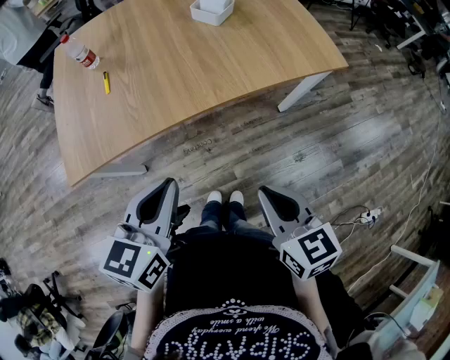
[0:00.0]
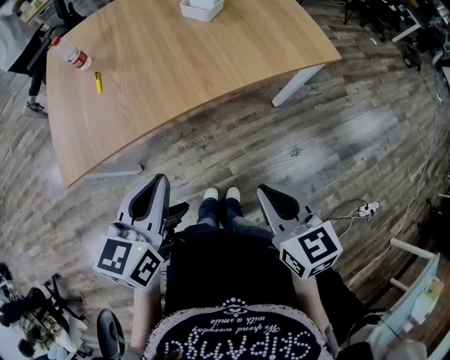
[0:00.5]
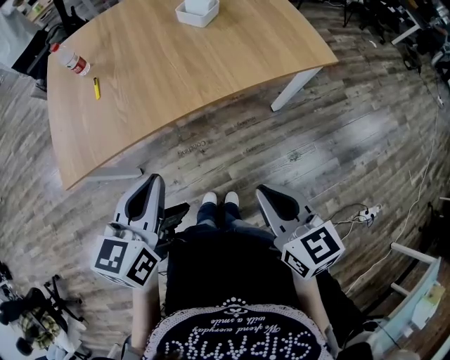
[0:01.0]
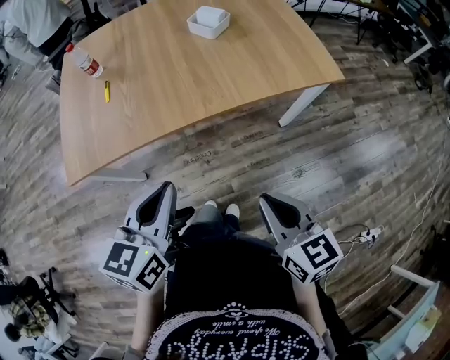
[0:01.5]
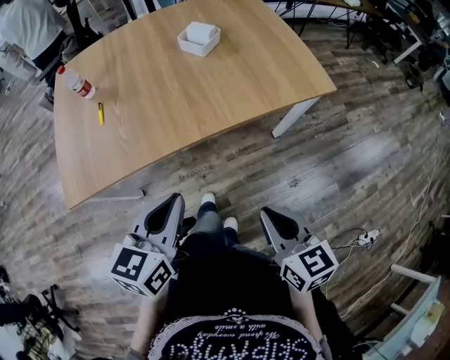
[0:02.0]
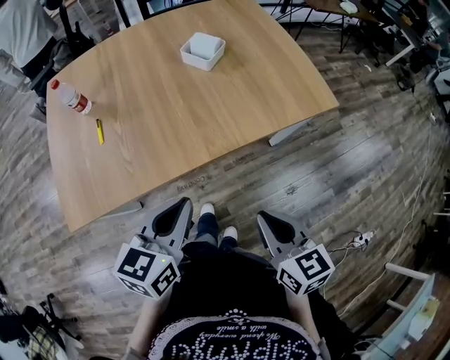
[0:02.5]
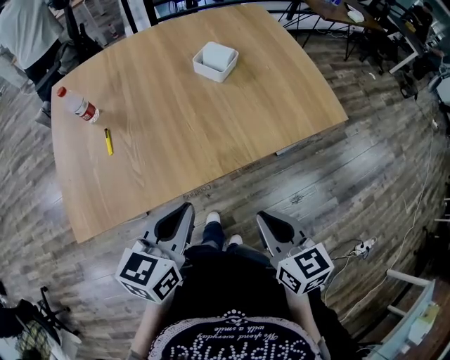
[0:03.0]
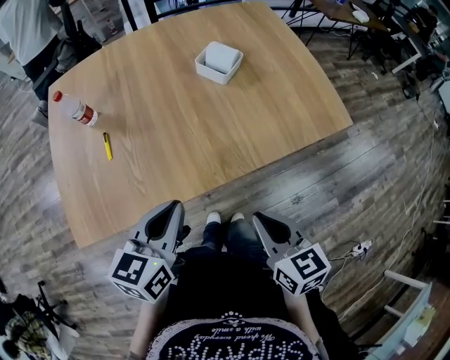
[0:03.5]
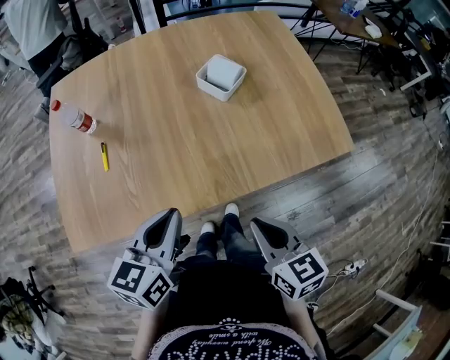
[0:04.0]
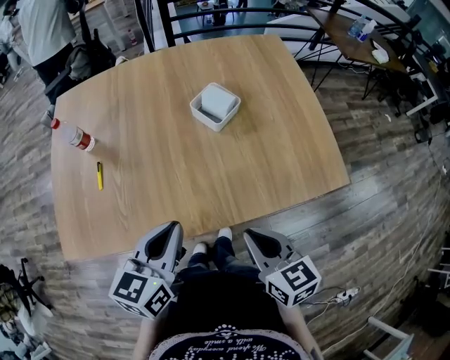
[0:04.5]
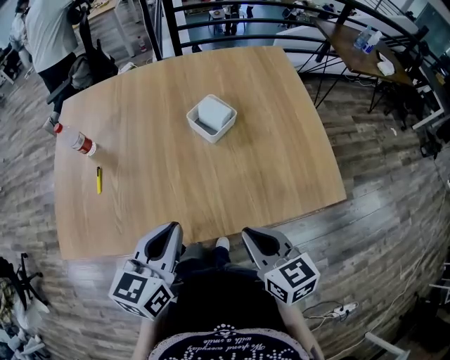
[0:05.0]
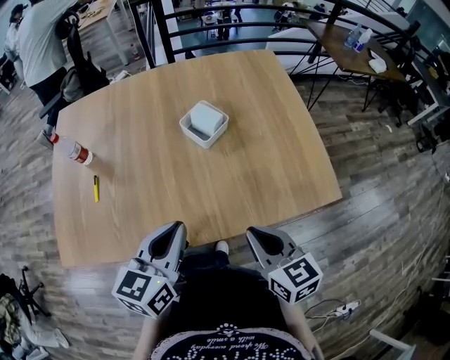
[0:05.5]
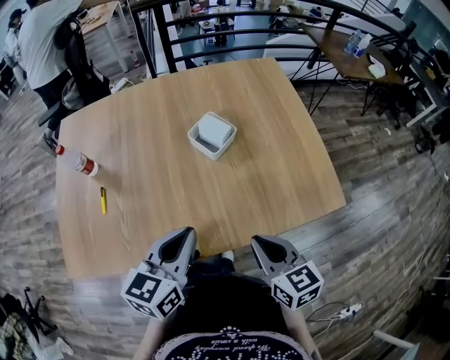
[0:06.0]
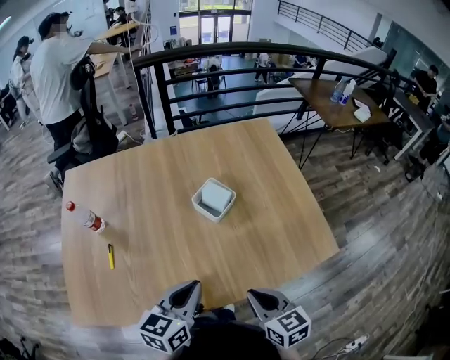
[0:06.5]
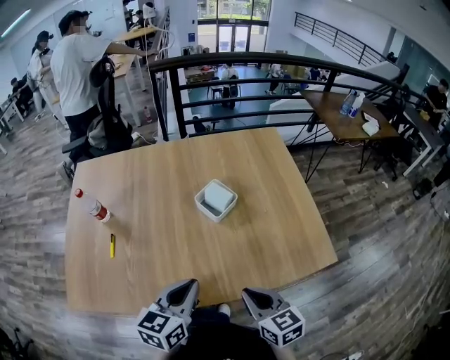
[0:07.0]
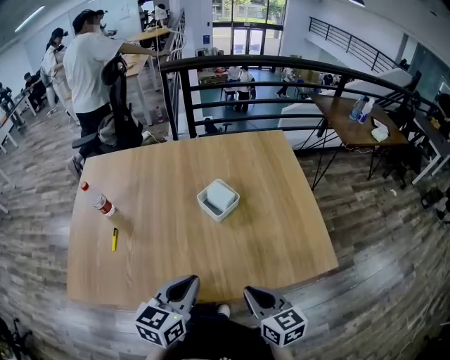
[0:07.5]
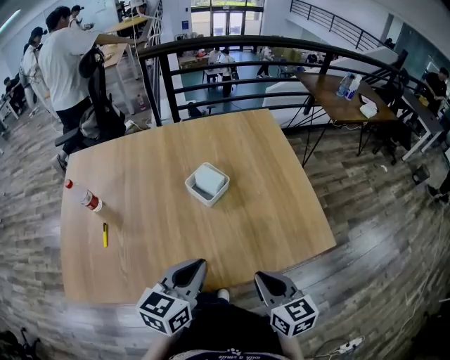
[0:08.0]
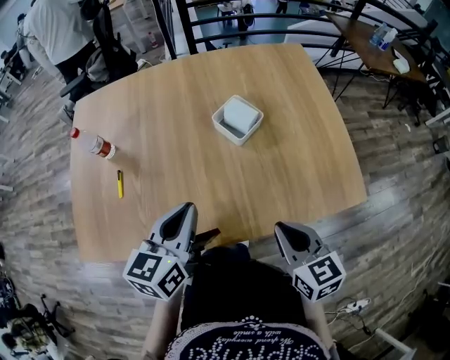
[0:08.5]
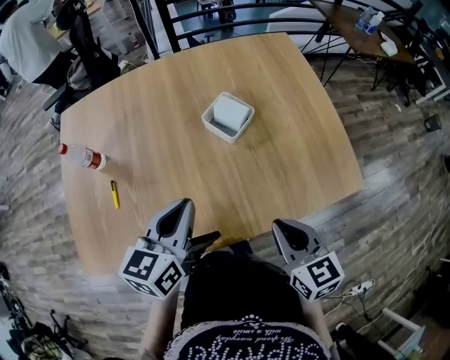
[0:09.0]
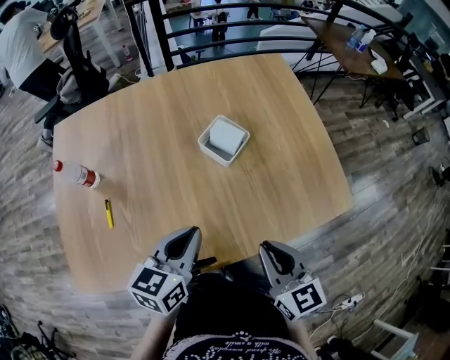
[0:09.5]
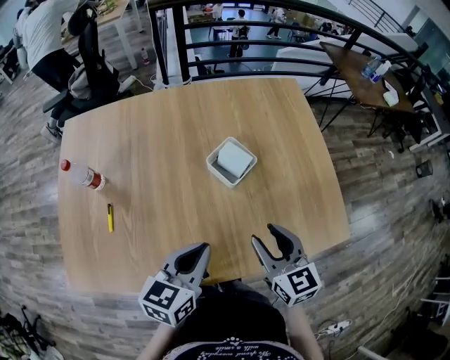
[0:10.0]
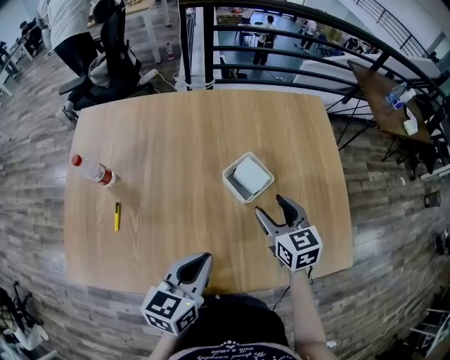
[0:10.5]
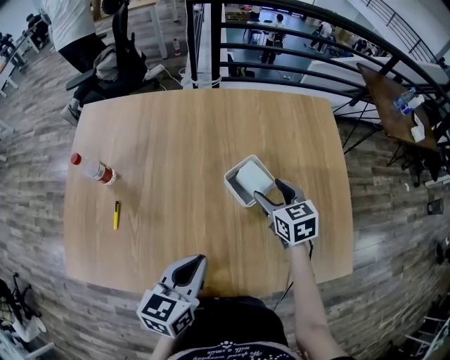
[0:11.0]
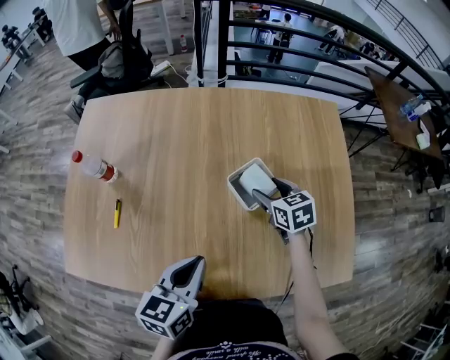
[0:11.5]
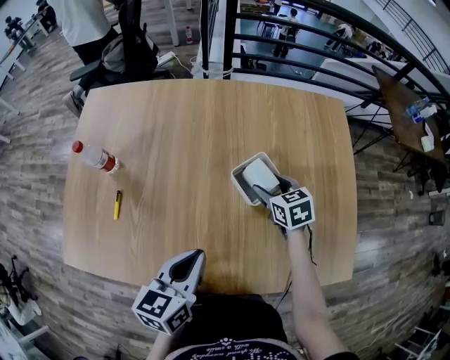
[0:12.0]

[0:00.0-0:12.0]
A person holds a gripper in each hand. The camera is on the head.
0:00.0 to 0:02.0: Both grippers travel together to the right, some 5 cm.
0:02.0 to 0:04.0: The two grippers go about 15 cm forward.
0:04.0 to 0:06.0: The right gripper is displaced forward and to the right by some 10 cm, while the left gripper goes some 10 cm to the right and forward.
0:06.0 to 0:08.0: The grippers make only small movements.
0:08.0 to 0:10.0: The right gripper travels forward and to the left by roughly 10 cm, and opens up. The left gripper travels to the left by some 5 cm.
0:10.0 to 0:12.0: The right gripper shifts some 25 cm forward and downward, rotates approximately 30 degrees, and opens its fingers.

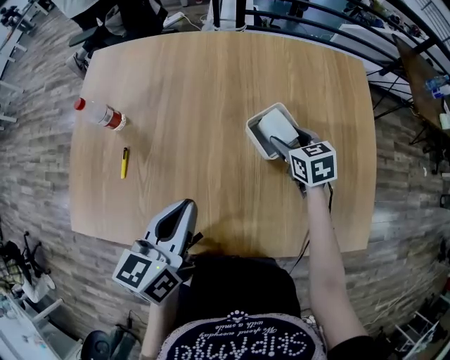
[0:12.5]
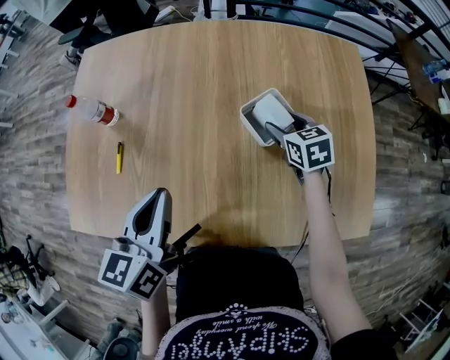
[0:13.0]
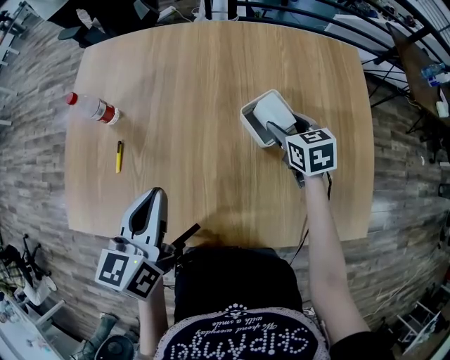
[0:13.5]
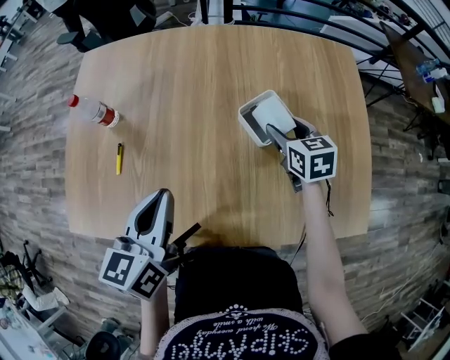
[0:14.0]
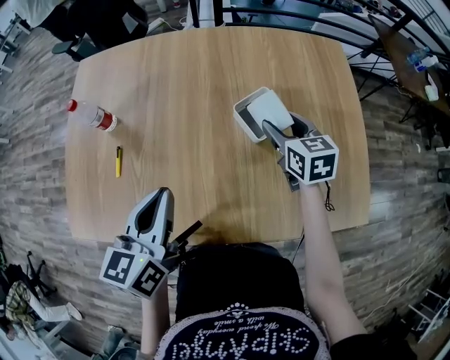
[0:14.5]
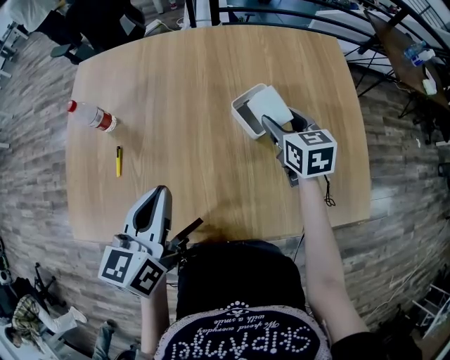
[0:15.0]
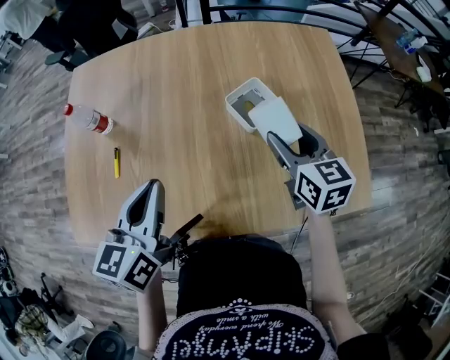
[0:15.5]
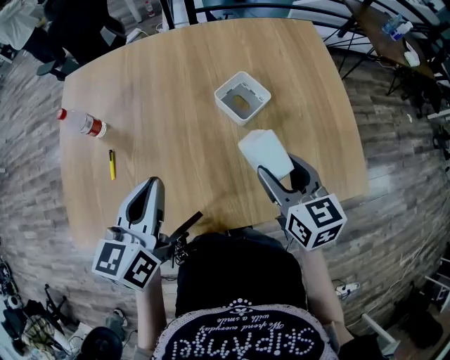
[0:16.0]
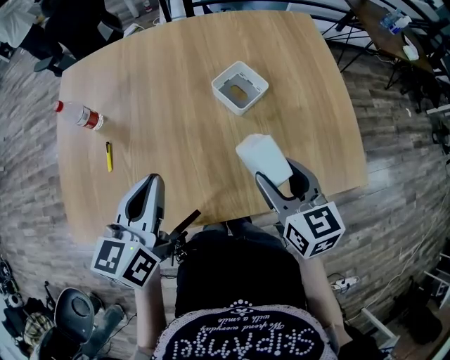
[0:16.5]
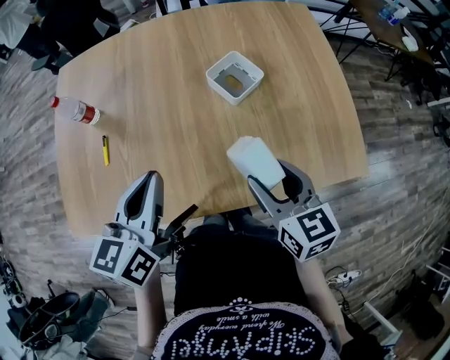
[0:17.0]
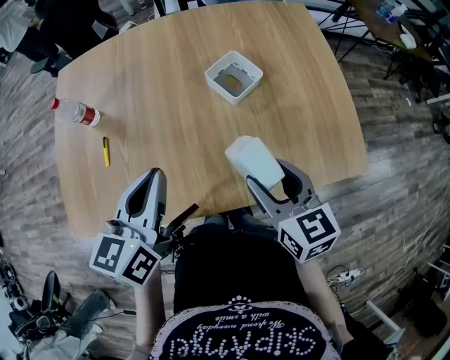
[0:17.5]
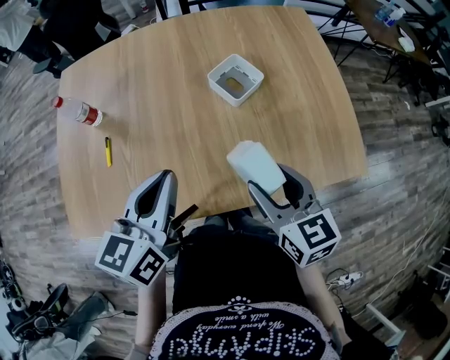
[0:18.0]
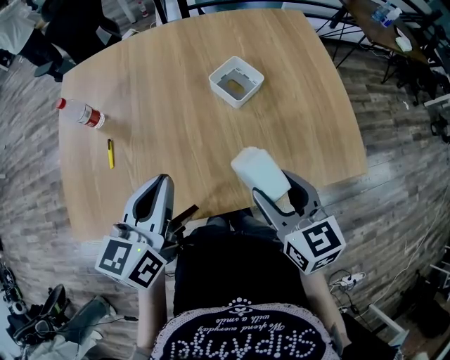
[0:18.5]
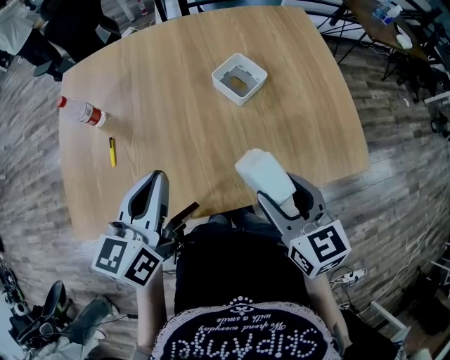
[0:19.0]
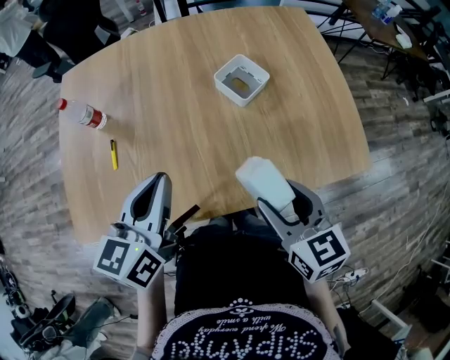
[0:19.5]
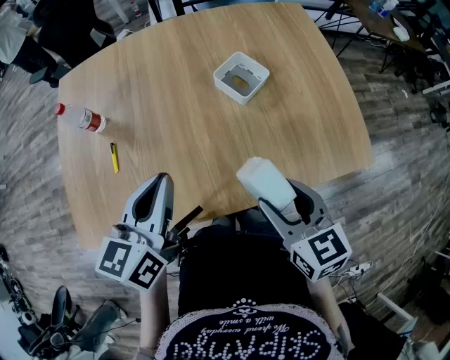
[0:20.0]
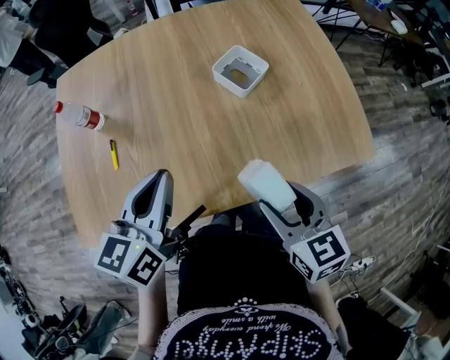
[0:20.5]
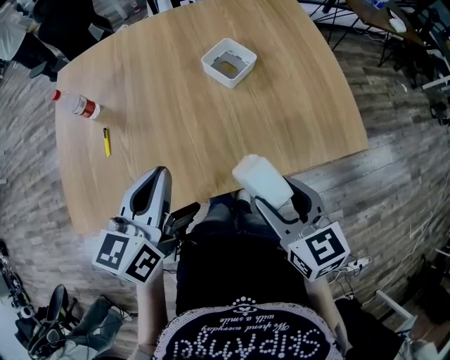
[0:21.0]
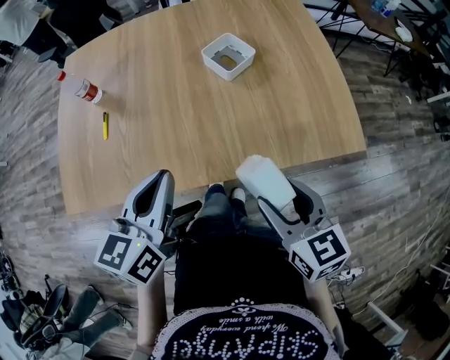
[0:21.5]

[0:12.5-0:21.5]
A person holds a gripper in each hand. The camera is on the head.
0:12.5 to 0:14.5: The right gripper is displaced upward by roughly 5 cm.
0:14.5 to 0:17.0: The right gripper shifts some 25 cm backward.
0:17.0 to 0:19.5: The right gripper moves backward, roughly 5 cm.
0:19.5 to 0:21.5: Both grippers move backward, roughly 10 cm.

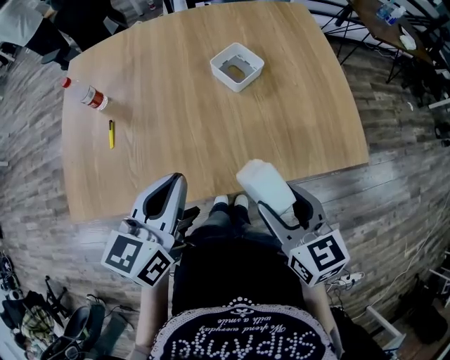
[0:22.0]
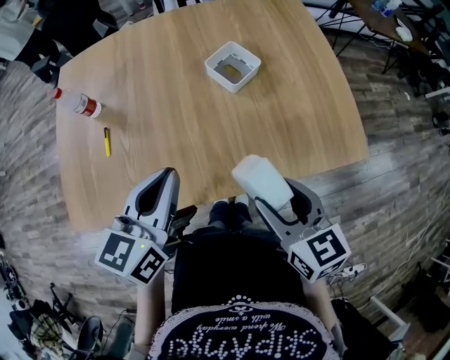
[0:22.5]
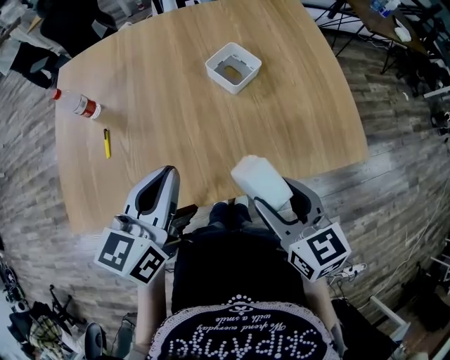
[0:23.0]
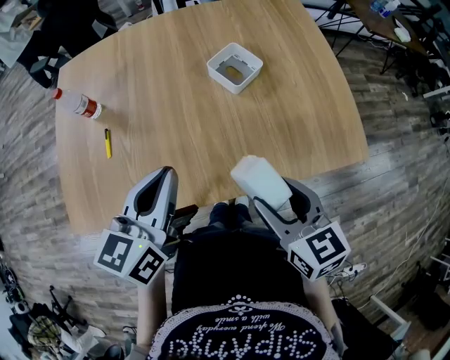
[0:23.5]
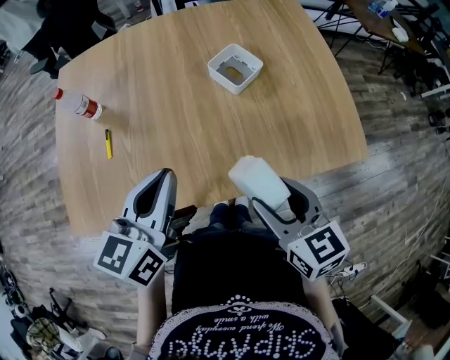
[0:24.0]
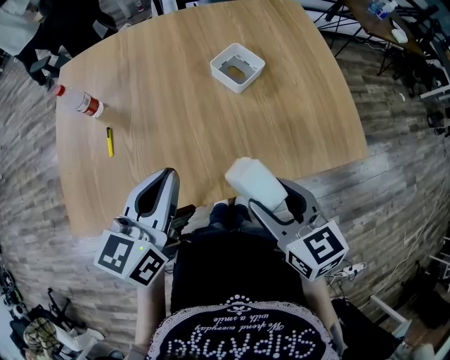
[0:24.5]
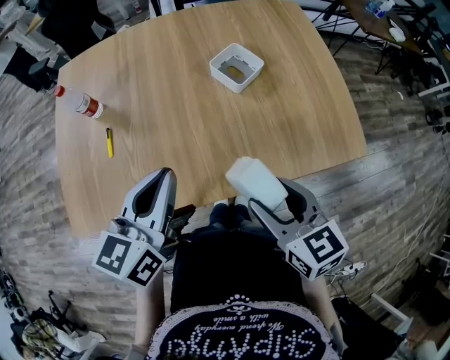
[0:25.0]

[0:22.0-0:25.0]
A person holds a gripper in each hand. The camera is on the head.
0:22.0 to 0:25.0: The grippers stay close to where they were, moving slightly.

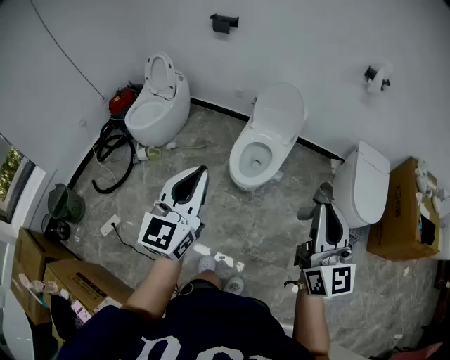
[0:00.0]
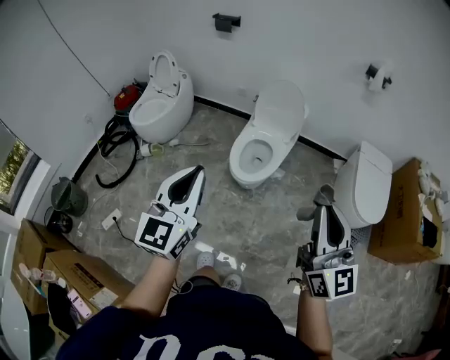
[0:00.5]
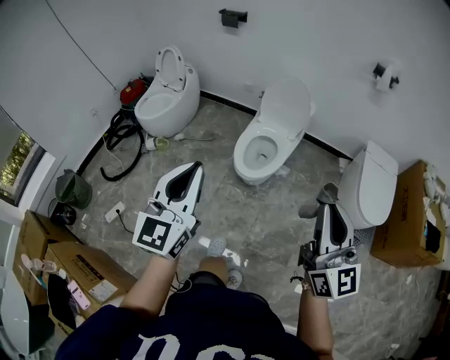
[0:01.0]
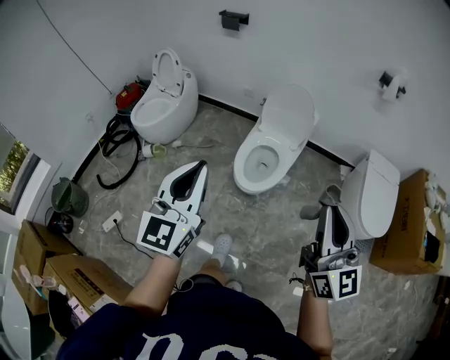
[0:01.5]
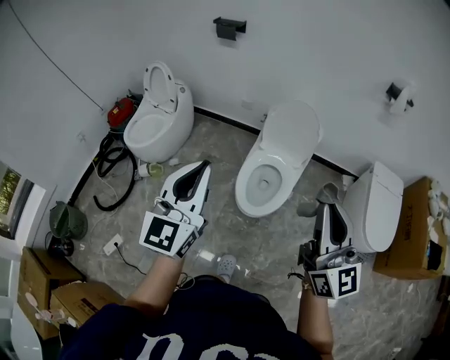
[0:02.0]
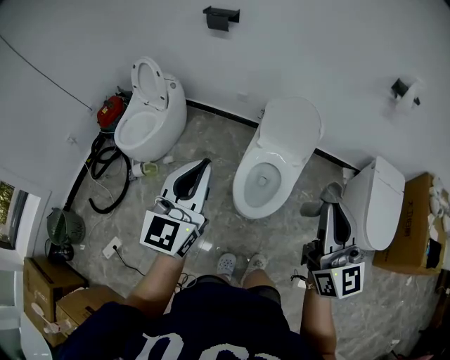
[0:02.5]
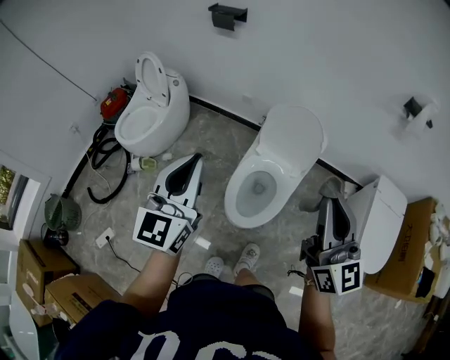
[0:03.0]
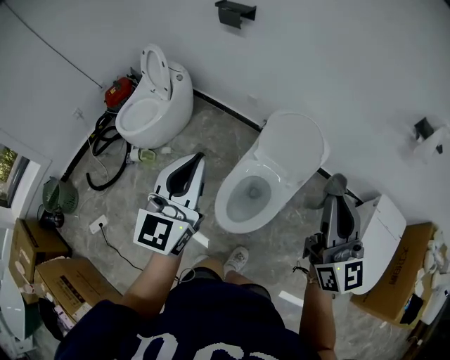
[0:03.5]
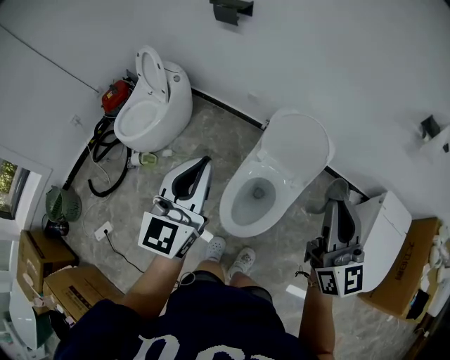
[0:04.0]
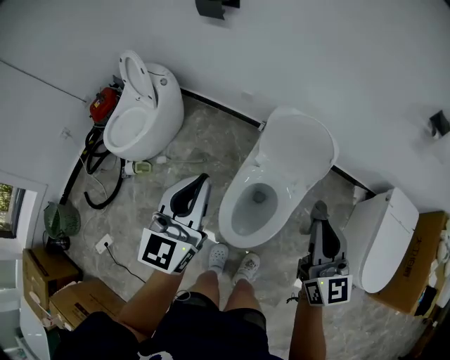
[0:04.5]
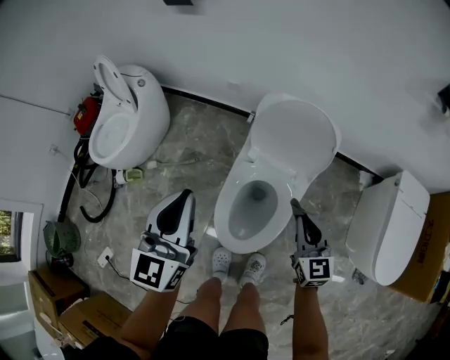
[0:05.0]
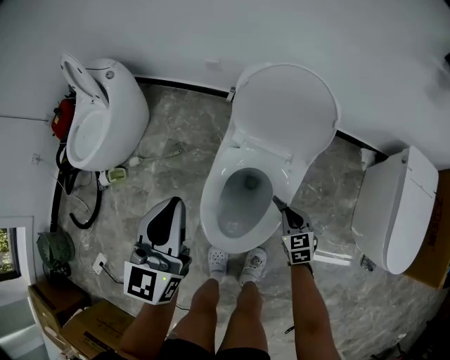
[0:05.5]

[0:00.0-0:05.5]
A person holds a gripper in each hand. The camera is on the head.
0:00.0 to 0:02.0: The grippers both shift forward by about 25 cm.
0:02.0 to 0:03.5: The two grippers go approximately 30 cm forward and to the right.
0:03.5 to 0:05.5: The right gripper moves downward, about 60 cm, and points its fingers some 60 degrees further downward; the left gripper heads downward and forward, covering about 35 cm.
